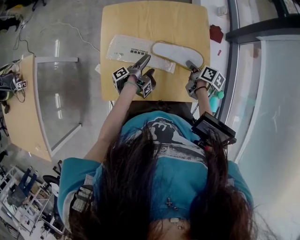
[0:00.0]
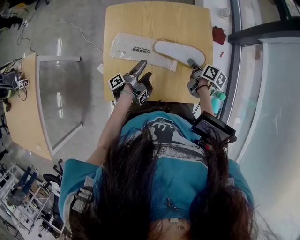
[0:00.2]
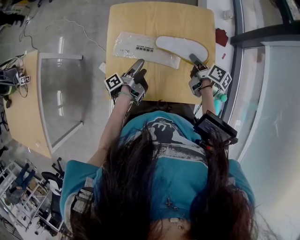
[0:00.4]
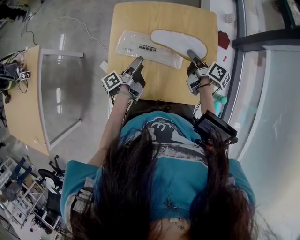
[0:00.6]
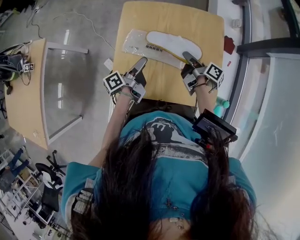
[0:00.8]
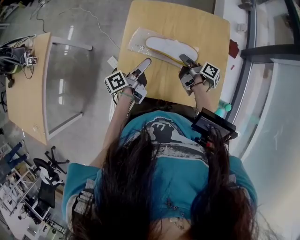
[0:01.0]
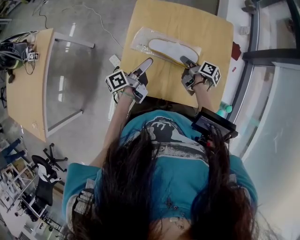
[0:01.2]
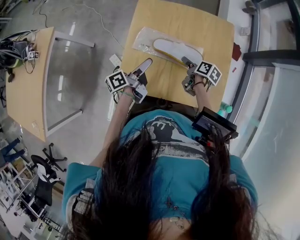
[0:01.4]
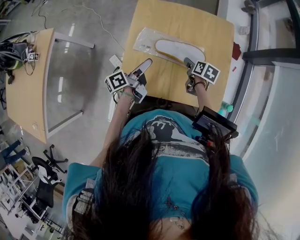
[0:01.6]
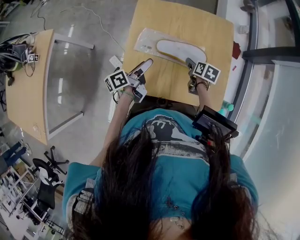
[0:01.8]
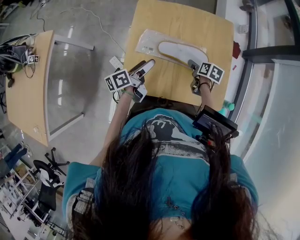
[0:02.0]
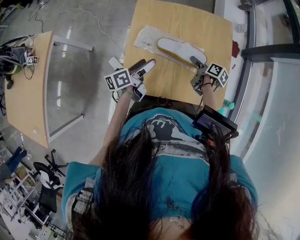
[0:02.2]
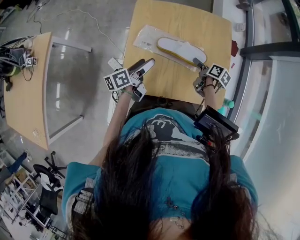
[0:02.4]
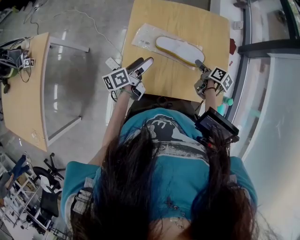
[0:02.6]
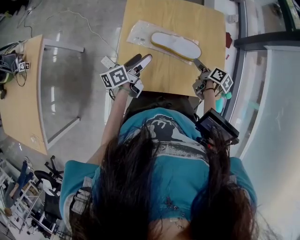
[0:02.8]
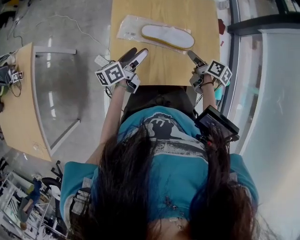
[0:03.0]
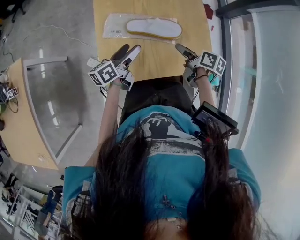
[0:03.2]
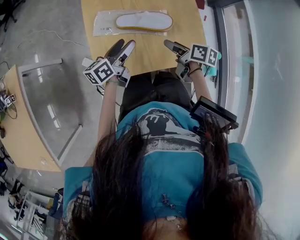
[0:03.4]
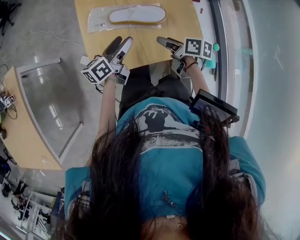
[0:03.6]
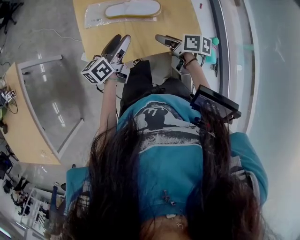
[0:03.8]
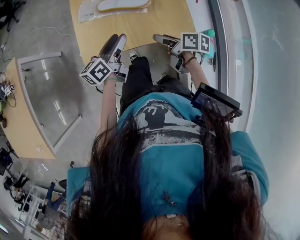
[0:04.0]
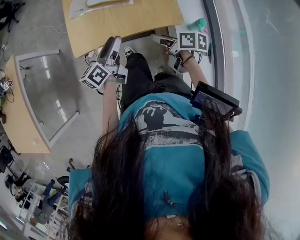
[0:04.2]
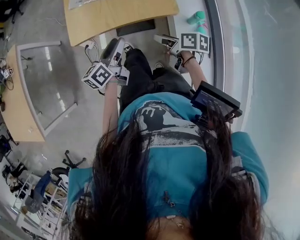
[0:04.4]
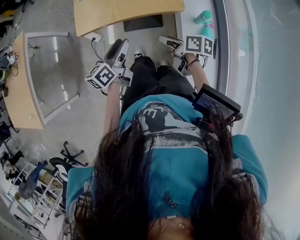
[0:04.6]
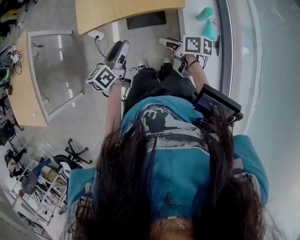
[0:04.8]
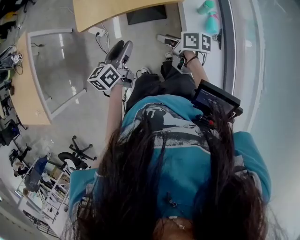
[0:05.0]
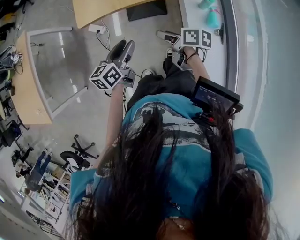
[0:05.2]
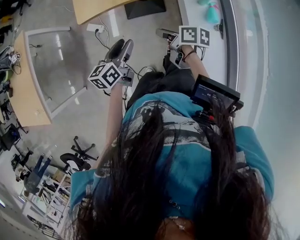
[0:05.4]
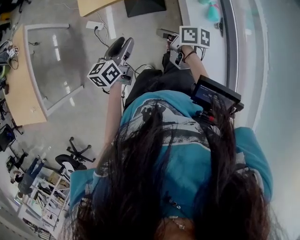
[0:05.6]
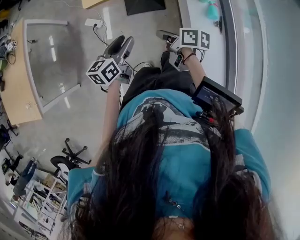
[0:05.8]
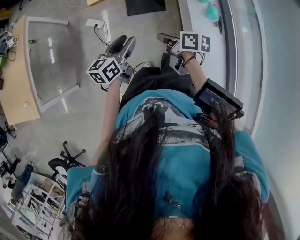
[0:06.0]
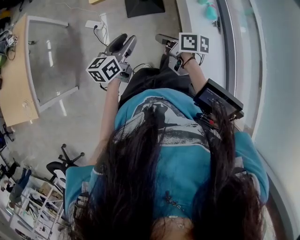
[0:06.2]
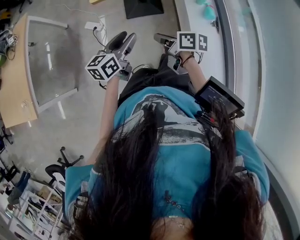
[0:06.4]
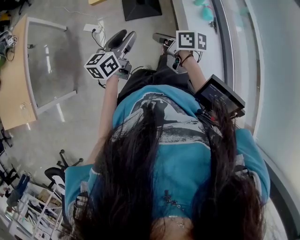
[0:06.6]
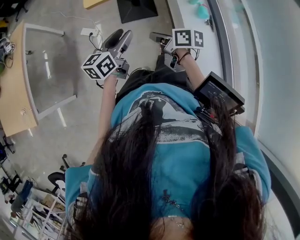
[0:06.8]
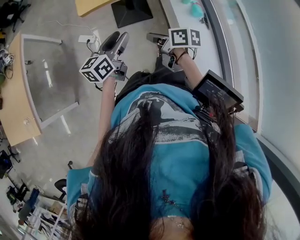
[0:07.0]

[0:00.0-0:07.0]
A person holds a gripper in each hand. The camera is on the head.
0:00.0 to 0:01.4: The left gripper moves some 15 cm, and rotates around the line of its fingers by approximately 40 degrees, clockwise from behind.
0:02.8 to 0:04.2: The left gripper moves approximately 25 cm, and closes up.
0:04.2 to 0:05.6: The left gripper moves about 25 cm.

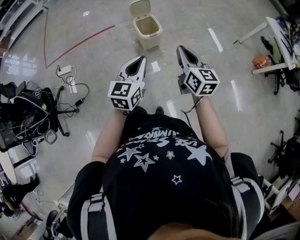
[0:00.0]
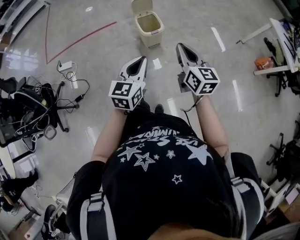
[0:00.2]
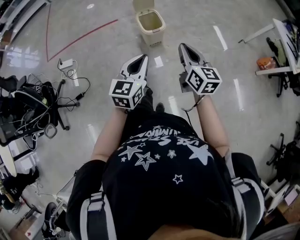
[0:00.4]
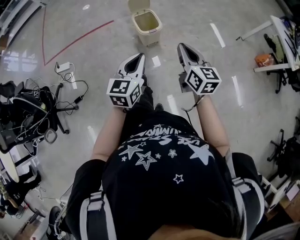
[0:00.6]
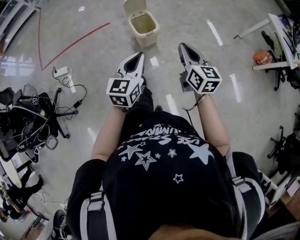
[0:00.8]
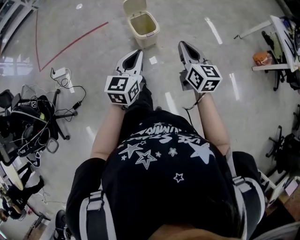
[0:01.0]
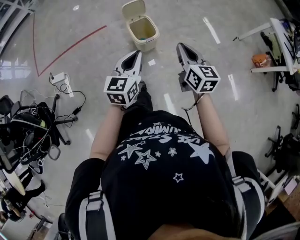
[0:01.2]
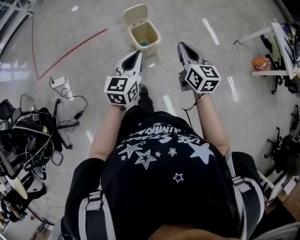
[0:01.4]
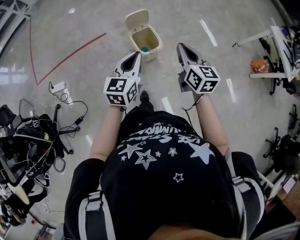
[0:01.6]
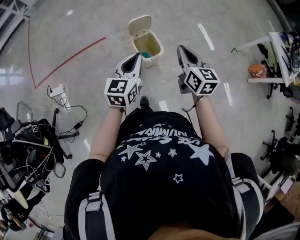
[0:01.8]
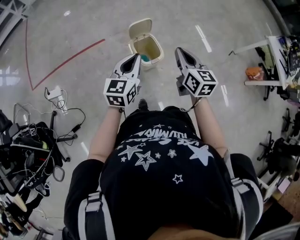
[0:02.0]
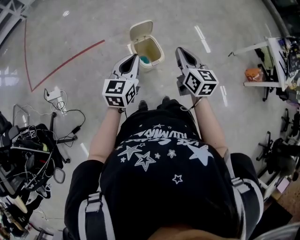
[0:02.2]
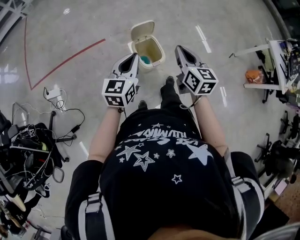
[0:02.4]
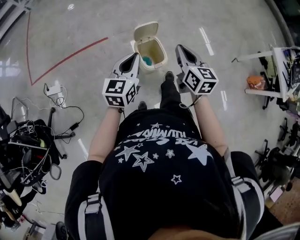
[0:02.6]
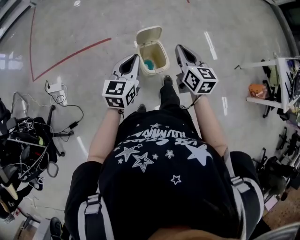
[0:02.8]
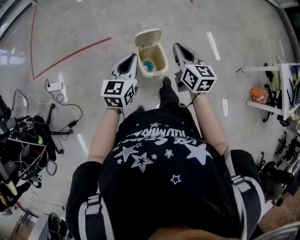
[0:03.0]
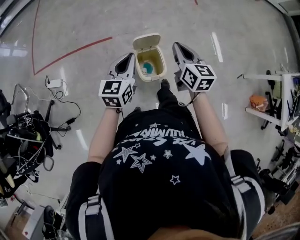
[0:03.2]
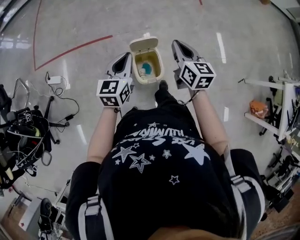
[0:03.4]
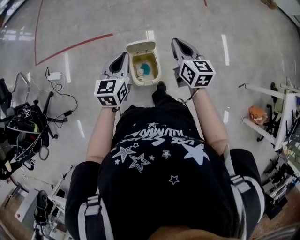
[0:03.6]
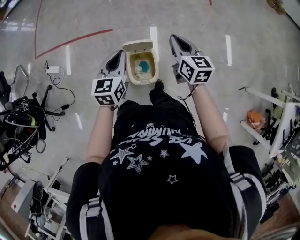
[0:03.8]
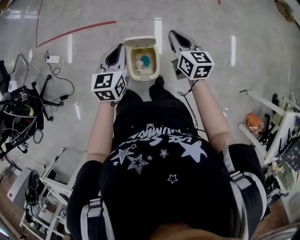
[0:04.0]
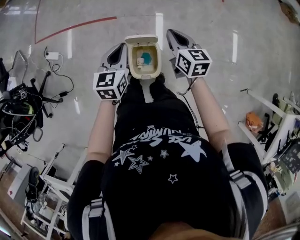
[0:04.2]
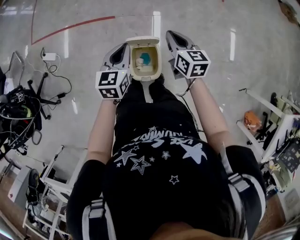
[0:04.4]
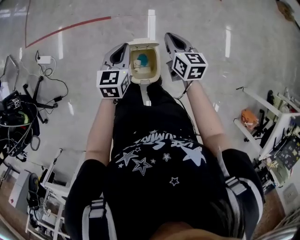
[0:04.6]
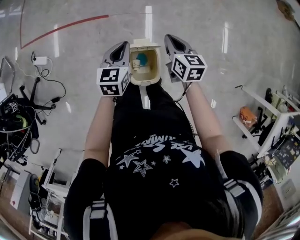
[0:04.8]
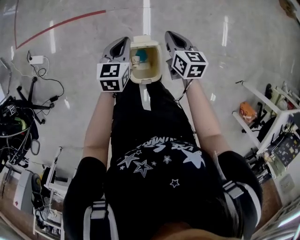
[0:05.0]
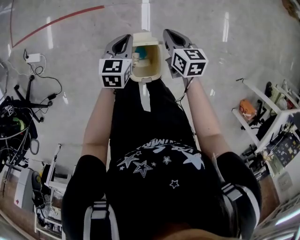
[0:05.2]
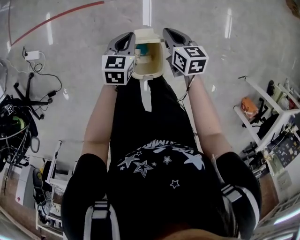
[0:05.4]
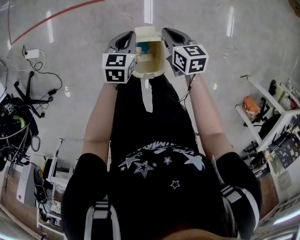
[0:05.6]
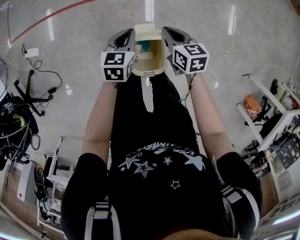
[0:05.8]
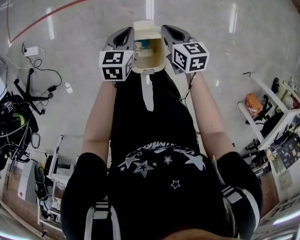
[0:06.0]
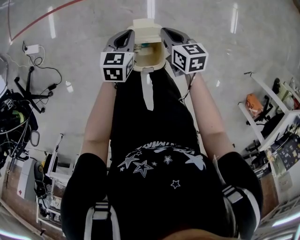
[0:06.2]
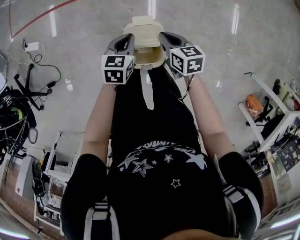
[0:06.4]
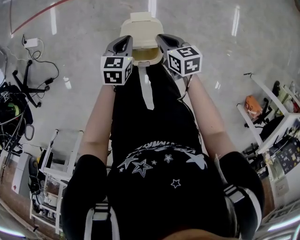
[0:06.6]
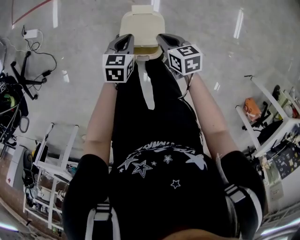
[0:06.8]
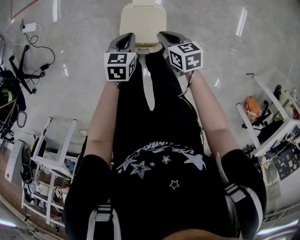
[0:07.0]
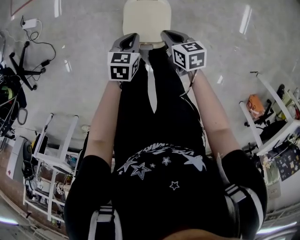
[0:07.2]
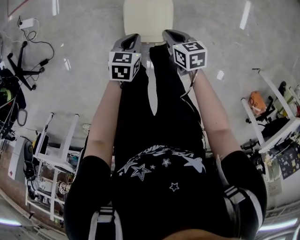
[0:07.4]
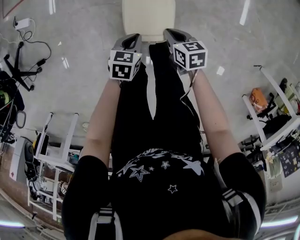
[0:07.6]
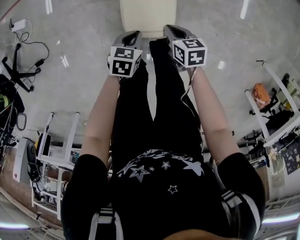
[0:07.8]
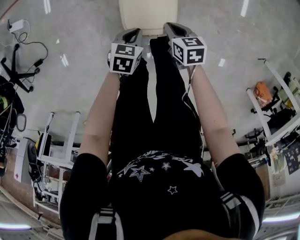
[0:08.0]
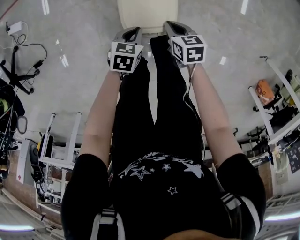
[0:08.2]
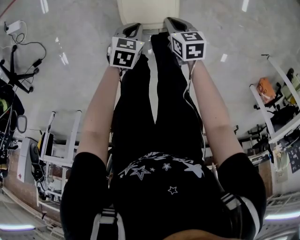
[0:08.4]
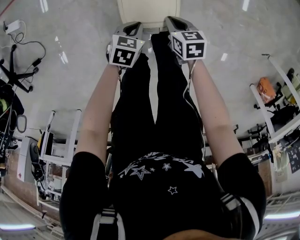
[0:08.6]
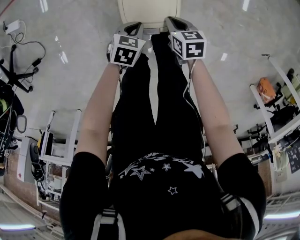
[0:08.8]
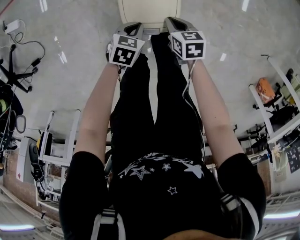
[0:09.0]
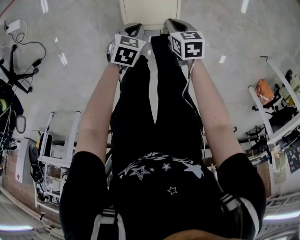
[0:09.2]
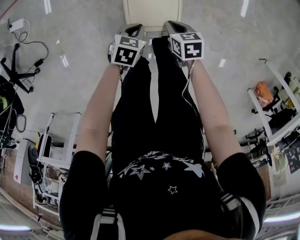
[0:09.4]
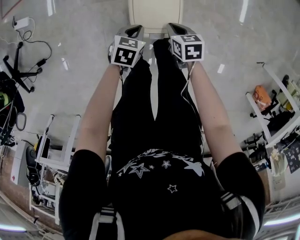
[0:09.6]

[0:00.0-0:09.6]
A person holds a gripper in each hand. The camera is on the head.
0:00.0 to 0:01.6: The grippers both shift forward by some 25 cm.
0:01.6 to 0:03.2: Both grippers travel together forward, approximately 25 cm.
0:03.2 to 0:04.8: Both grippers move forward and downward, about 25 cm. The right gripper swivels about 20 degrees.
0:04.8 to 0:06.4: The left gripper moves downward, about 15 cm. Meanwhile the right gripper travels downward and backward by approximately 15 cm.
0:06.4 to 0:08.0: The left gripper goes some 25 cm backward and downward. Meanwhile the right gripper is displaced downward and backward by approximately 20 cm.
0:08.0 to 0:09.6: The grippers make only small movements.

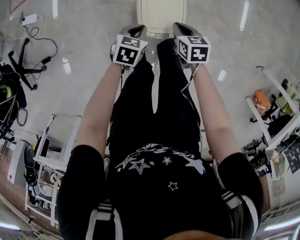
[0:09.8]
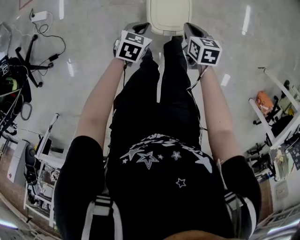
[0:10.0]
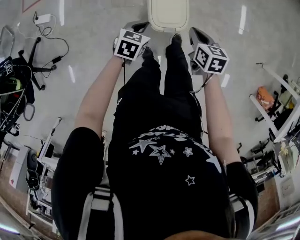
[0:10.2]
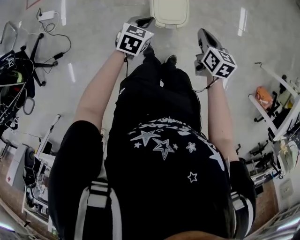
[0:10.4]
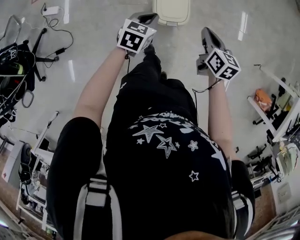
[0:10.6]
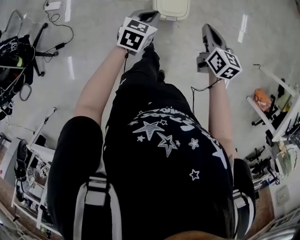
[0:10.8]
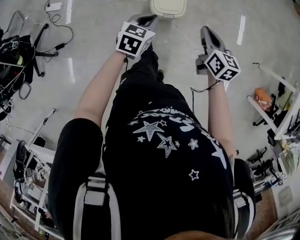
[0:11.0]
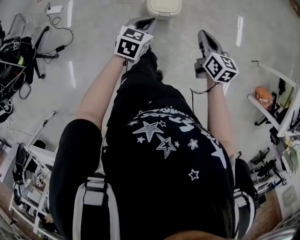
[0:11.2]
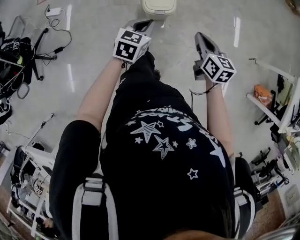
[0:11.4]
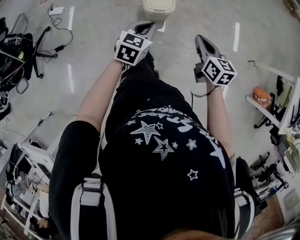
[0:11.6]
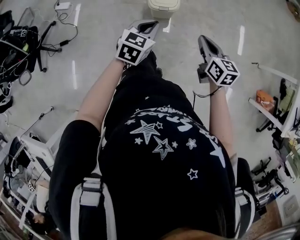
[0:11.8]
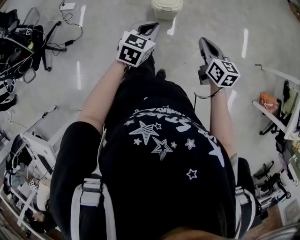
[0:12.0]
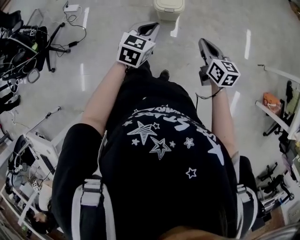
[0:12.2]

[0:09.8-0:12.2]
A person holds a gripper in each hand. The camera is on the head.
0:09.8 to 0:11.0: The grippers both shift upward and backward by roughly 30 cm. The right gripper changes its angle by some 30 degrees.
0:11.0 to 0:12.2: The right gripper goes approximately 20 cm backward. The left gripper moves backward and upward, about 20 cm.

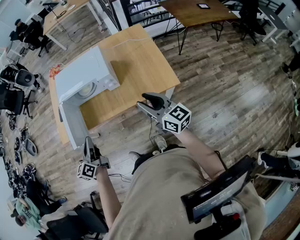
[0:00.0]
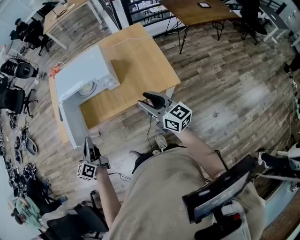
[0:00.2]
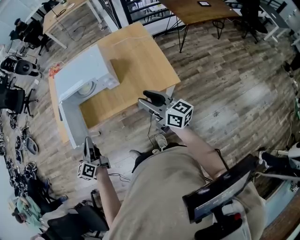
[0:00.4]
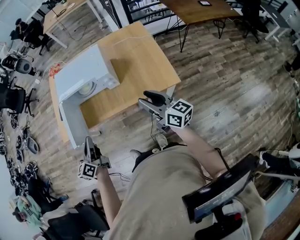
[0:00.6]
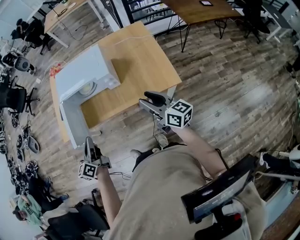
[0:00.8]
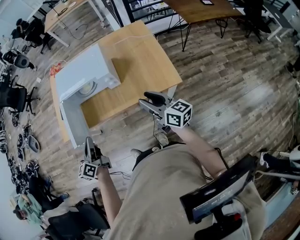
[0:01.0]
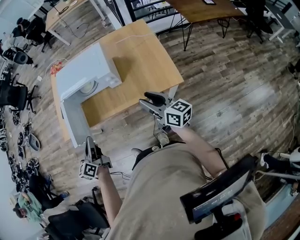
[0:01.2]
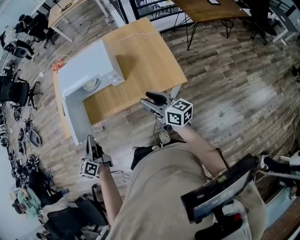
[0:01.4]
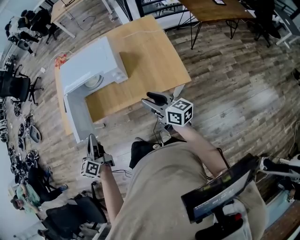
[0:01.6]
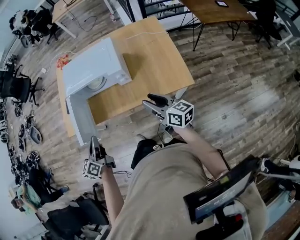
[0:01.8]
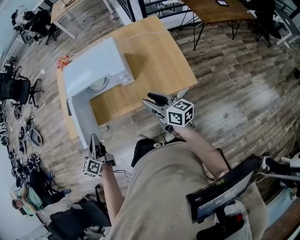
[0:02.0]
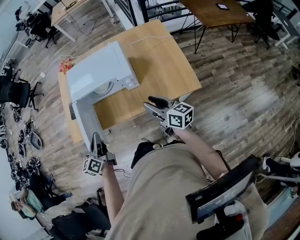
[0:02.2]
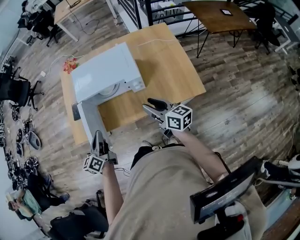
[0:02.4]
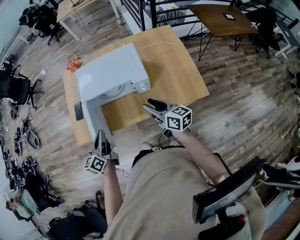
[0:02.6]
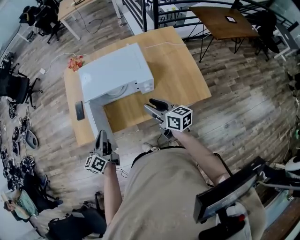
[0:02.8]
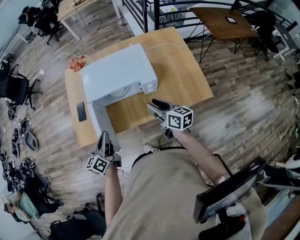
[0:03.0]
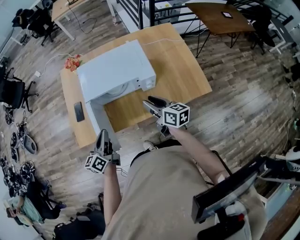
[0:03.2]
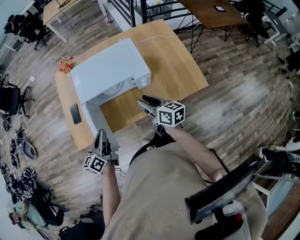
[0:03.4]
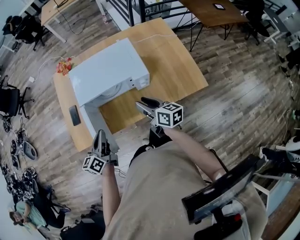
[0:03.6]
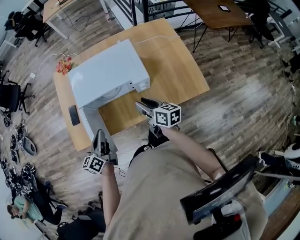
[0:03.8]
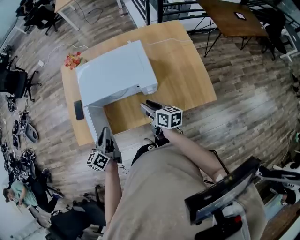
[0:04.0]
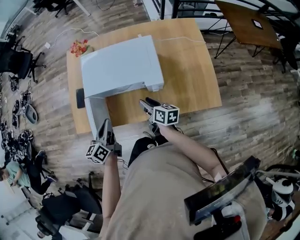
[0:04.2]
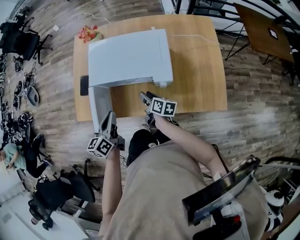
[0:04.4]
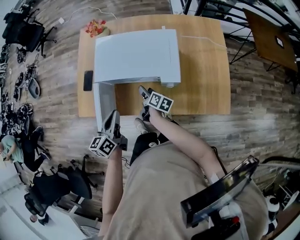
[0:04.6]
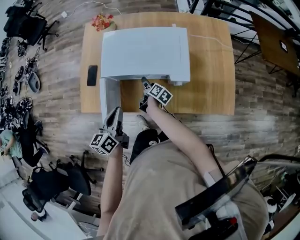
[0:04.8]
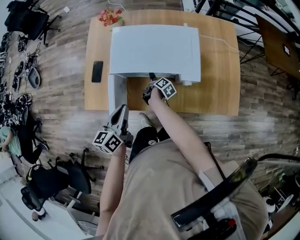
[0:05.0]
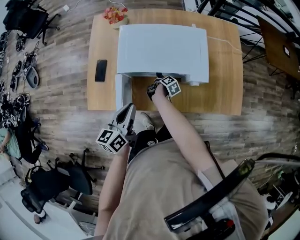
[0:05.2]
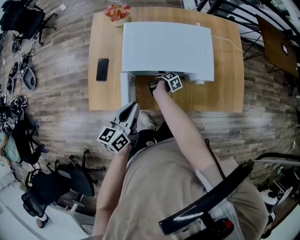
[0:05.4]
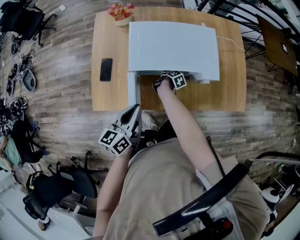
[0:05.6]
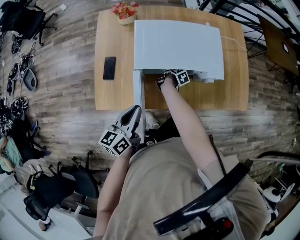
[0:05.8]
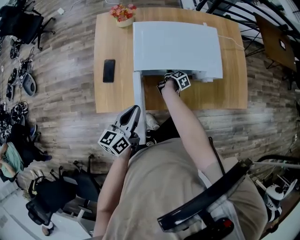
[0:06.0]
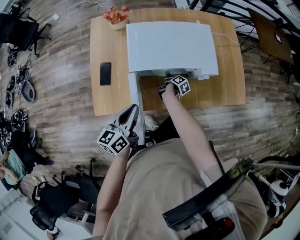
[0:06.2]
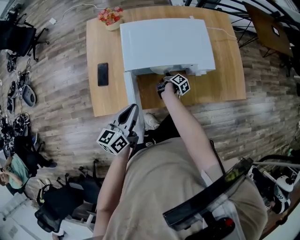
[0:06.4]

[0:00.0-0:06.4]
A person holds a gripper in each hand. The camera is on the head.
0:00.0 to 0:01.6: The right gripper heads downward, covering some 5 cm.
0:01.6 to 0:03.2: The left gripper goes some 20 cm forward and to the left. Meanwhile the right gripper is displaced to the left and forward by about 25 cm.
0:03.2 to 0:04.8: The left gripper travels forward by some 5 cm, while the right gripper heads downward and forward, covering about 30 cm, and turns by about 40 degrees.
0:04.8 to 0:06.4: The left gripper goes roughly 10 cm to the left, and swivels roughly 20 degrees, while the right gripper goes roughly 10 cm downward, changes its angle by about 30 degrees, and closes up.
